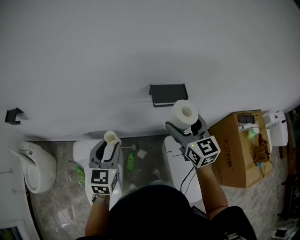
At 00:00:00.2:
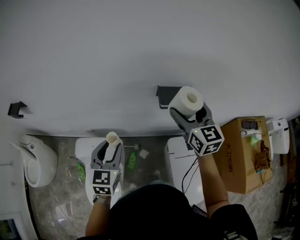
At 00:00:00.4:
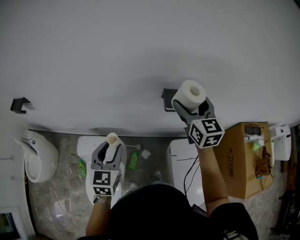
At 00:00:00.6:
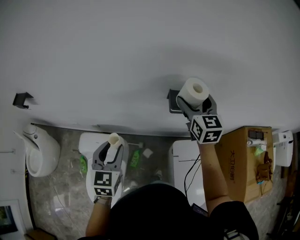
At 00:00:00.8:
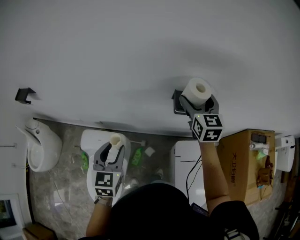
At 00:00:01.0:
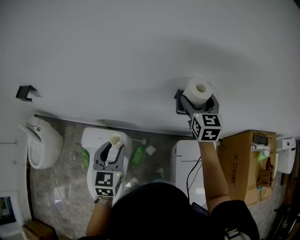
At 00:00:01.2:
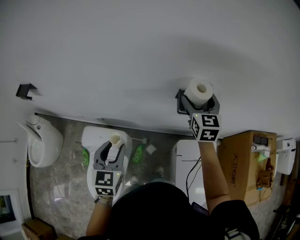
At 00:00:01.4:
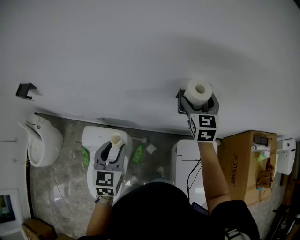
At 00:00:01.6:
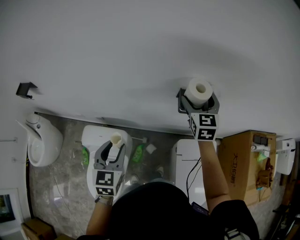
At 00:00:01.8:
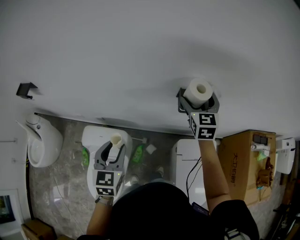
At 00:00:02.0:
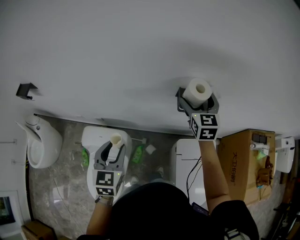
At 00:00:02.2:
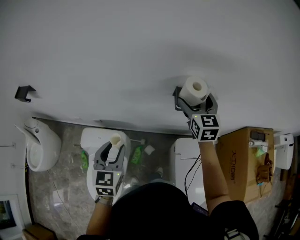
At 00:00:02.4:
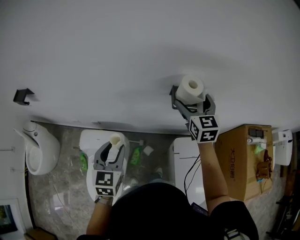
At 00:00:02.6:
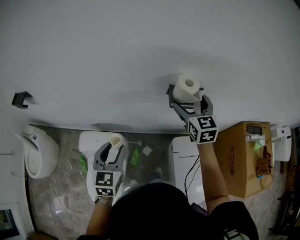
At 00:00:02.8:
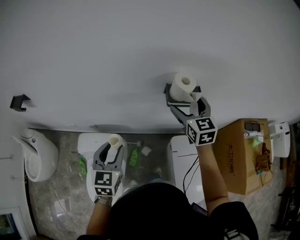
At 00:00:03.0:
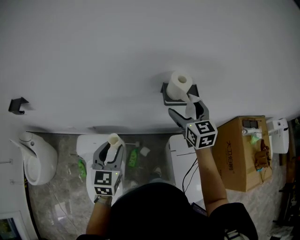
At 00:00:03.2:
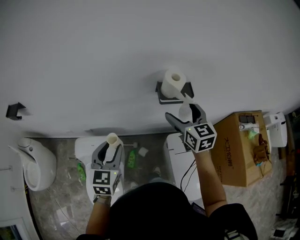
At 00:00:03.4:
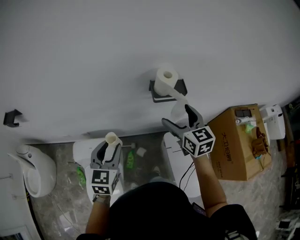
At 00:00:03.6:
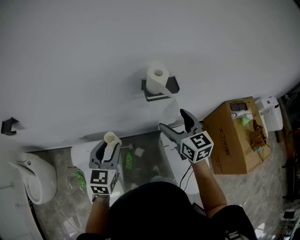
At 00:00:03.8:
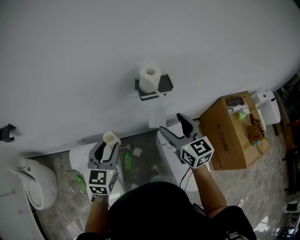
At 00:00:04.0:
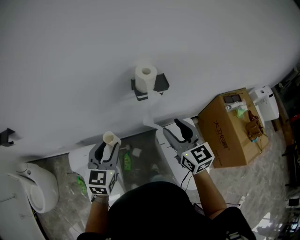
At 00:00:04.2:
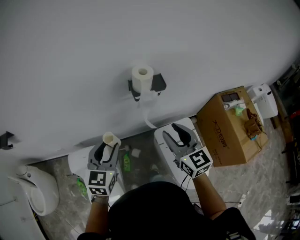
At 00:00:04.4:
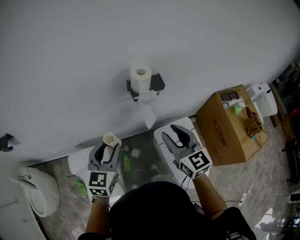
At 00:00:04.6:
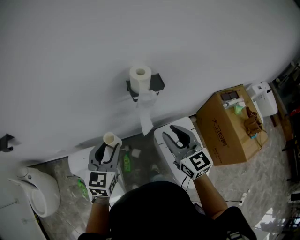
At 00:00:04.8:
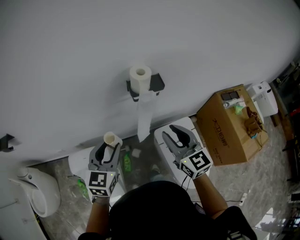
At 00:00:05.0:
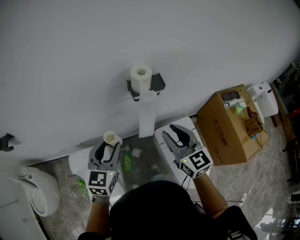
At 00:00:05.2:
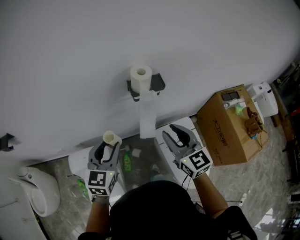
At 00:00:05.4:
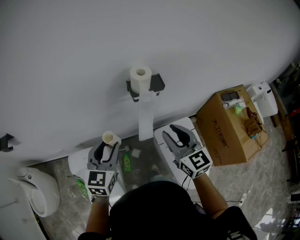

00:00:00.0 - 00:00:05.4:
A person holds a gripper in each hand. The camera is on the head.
00:00:00.0 - 00:00:01.4: The right gripper goes approximately 15 cm forward, while the left gripper changes place by approximately 5 cm.
00:00:01.4 - 00:00:02.8: The right gripper is displaced backward by some 10 cm.
00:00:02.8 - 00:00:04.0: The left gripper moves to the right, some 5 cm. The right gripper travels backward by roughly 15 cm, and closes.
00:00:04.0 - 00:00:05.4: The grippers stay close to where they were, moving slightly.

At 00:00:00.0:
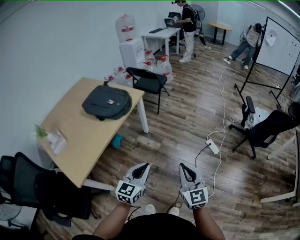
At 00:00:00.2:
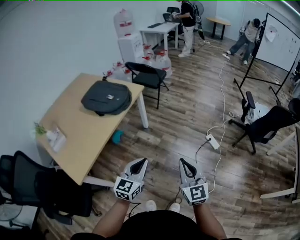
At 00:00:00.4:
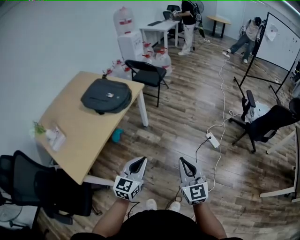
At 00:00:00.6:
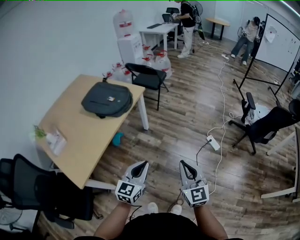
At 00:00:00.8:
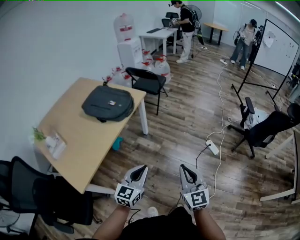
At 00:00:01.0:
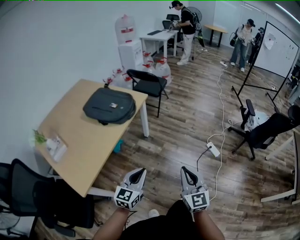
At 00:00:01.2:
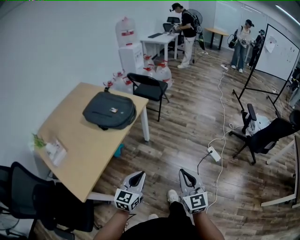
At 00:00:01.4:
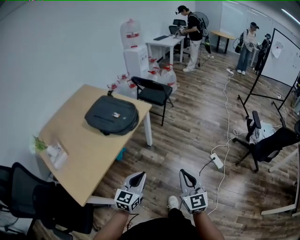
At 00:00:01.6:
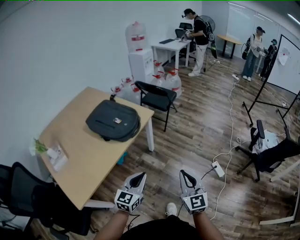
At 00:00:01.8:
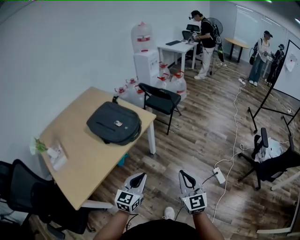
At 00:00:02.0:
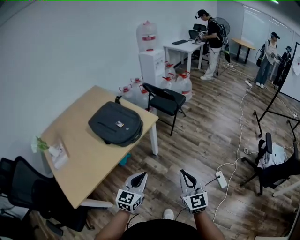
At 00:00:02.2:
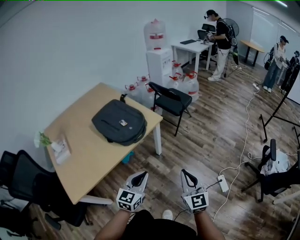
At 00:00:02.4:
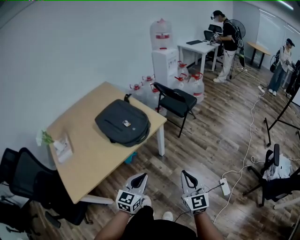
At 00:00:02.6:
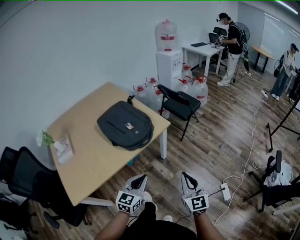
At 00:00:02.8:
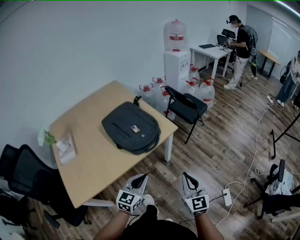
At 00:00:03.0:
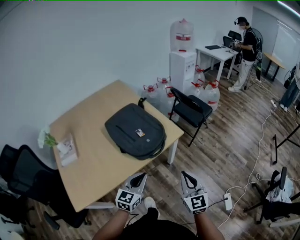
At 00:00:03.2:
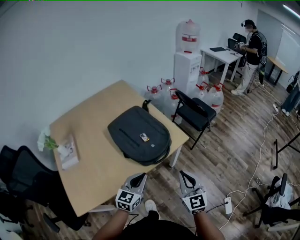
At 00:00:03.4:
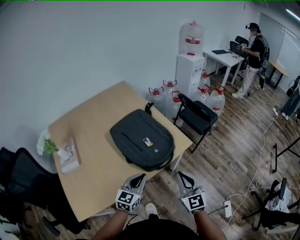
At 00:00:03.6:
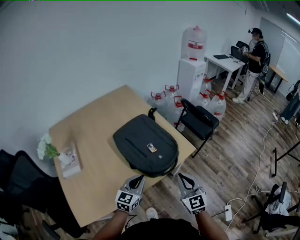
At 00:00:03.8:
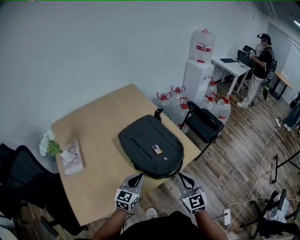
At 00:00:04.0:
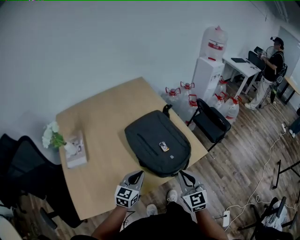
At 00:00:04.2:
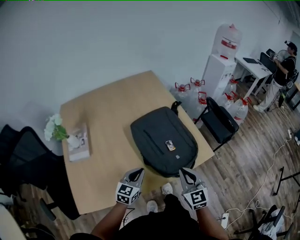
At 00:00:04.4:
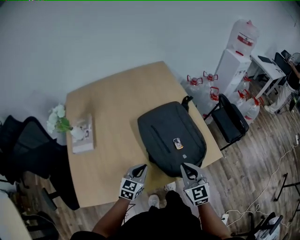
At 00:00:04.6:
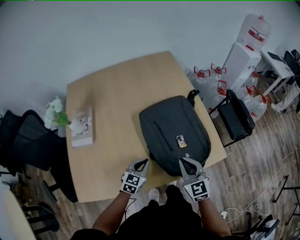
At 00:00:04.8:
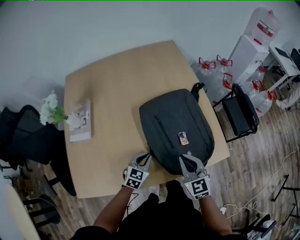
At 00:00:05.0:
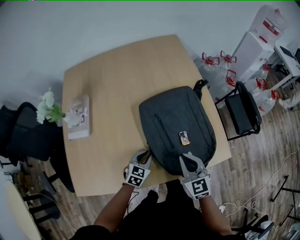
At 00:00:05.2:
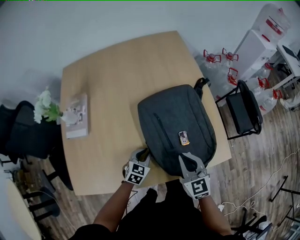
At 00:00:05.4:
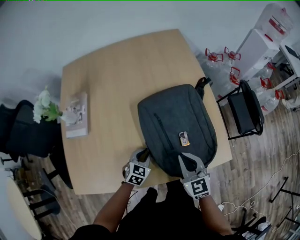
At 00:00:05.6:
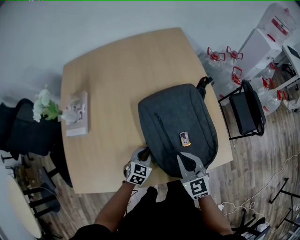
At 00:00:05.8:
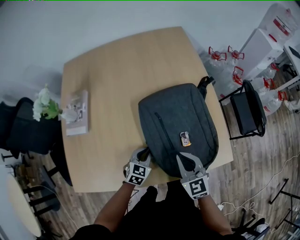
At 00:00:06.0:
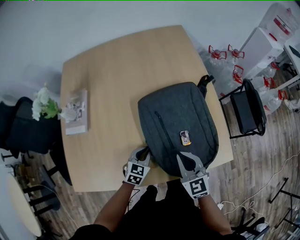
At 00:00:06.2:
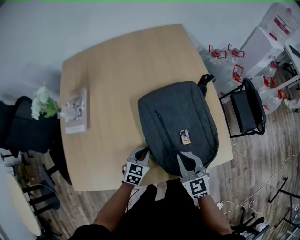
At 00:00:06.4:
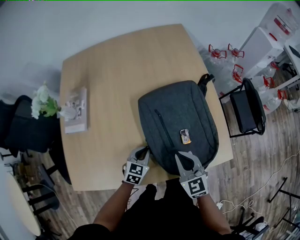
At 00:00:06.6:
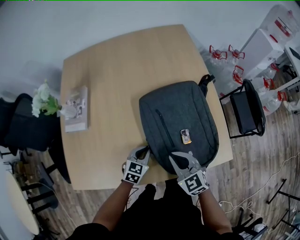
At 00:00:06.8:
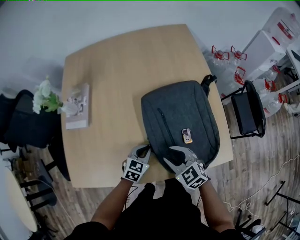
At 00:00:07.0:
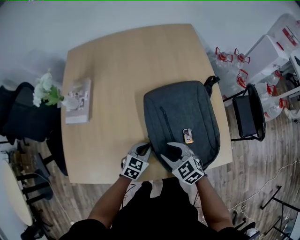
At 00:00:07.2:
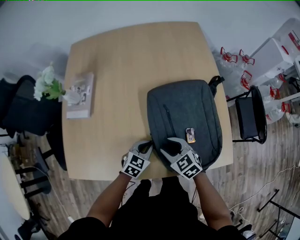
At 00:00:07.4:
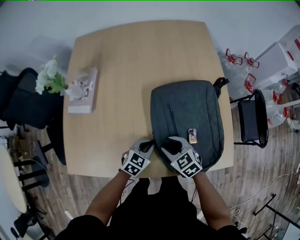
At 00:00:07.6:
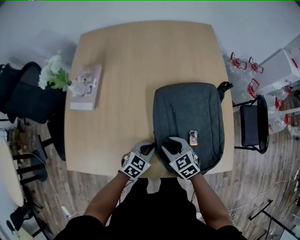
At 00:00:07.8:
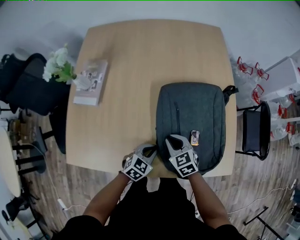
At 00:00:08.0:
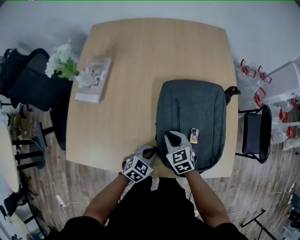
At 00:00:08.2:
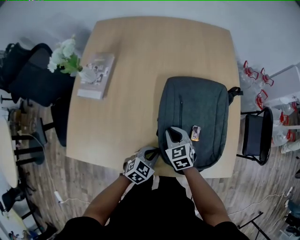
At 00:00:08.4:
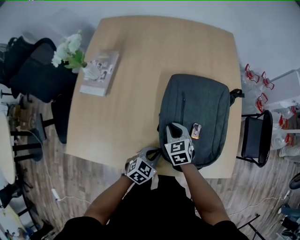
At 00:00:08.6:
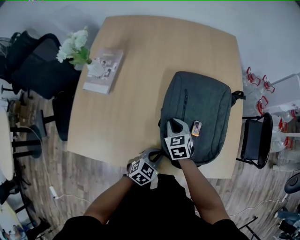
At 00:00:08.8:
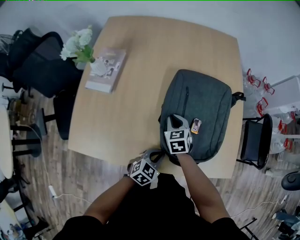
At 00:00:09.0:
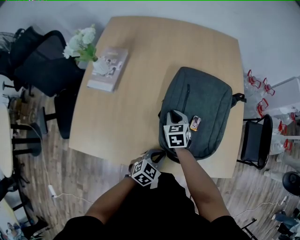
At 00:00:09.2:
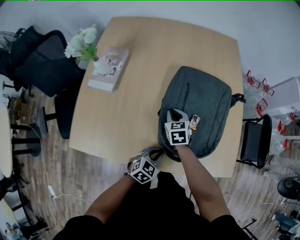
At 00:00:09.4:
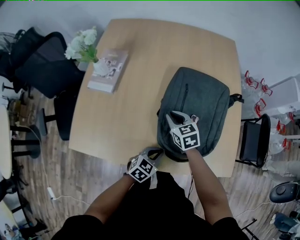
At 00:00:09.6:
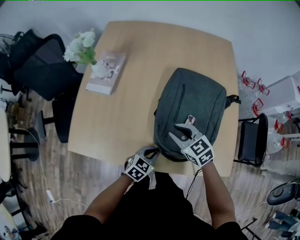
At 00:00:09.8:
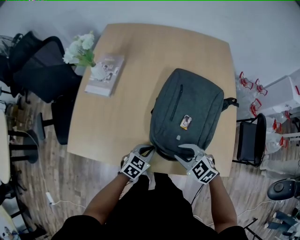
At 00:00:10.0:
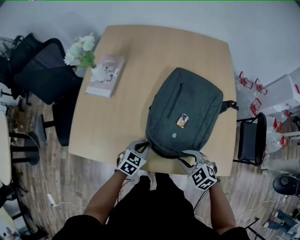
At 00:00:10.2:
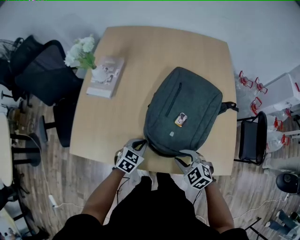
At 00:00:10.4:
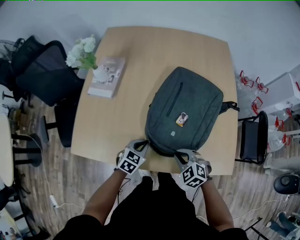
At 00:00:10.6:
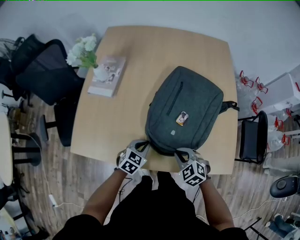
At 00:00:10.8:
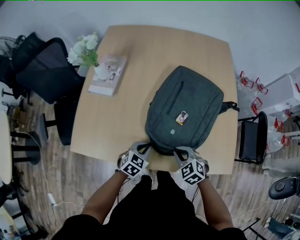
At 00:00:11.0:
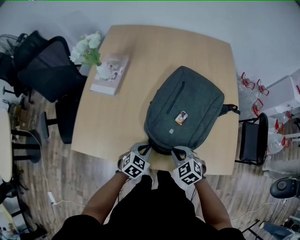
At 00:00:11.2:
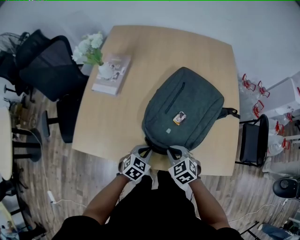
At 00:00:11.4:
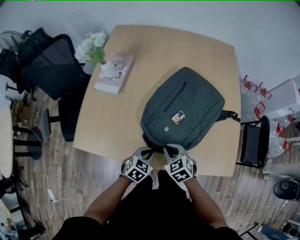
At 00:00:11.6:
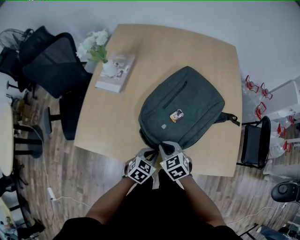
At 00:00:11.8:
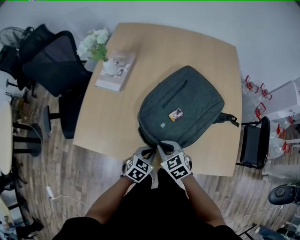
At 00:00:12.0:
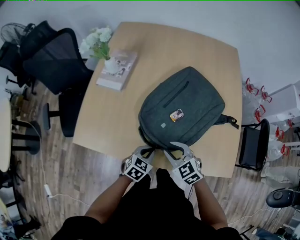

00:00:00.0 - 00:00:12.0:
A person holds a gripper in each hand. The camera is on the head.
00:00:00.0 - 00:00:01.6: The left gripper heads forward and to the left, covering about 15 cm; the right gripper shifts roughly 15 cm forward.
00:00:01.6 - 00:00:03.0: The right gripper moves forward, about 25 cm, while the left gripper moves forward and to the left, roughly 20 cm.
00:00:03.0 - 00:00:04.4: The right gripper shifts about 30 cm forward and to the left, and turns by some 30 degrees. Meanwhile the left gripper travels to the left, forward and downward by roughly 25 cm, and turns by about 20 degrees.
00:00:04.4 - 00:00:06.0: The right gripper heads forward and downward, covering about 10 cm; the left gripper shifts approximately 10 cm downward and forward.
00:00:06.0 - 00:00:07.6: The right gripper heads downward and to the left, covering about 10 cm, swivels some 30 degrees, and opens its fingers.
00:00:07.6 - 00:00:09.0: The left gripper heads backward, covering approximately 5 cm, while the right gripper is displaced forward and to the left by some 15 cm, and closes.
00:00:09.0 - 00:00:10.4: The left gripper moves to the left and forward, some 10 cm. The right gripper moves backward, approximately 20 cm, and turns by approximately 40 degrees.
00:00:10.4 - 00:00:12.0: The left gripper travels backward by approximately 5 cm, while the right gripper travels to the left by roughly 5 cm.

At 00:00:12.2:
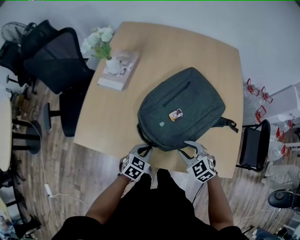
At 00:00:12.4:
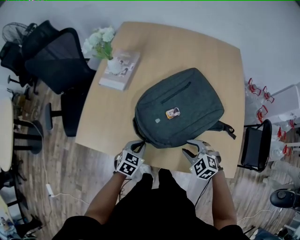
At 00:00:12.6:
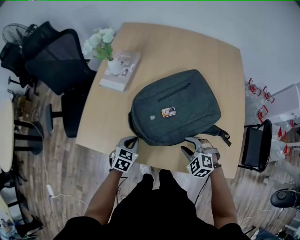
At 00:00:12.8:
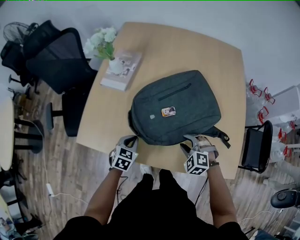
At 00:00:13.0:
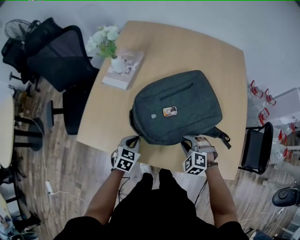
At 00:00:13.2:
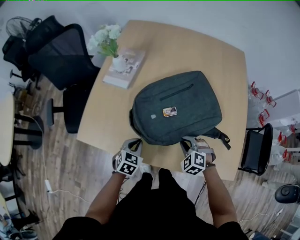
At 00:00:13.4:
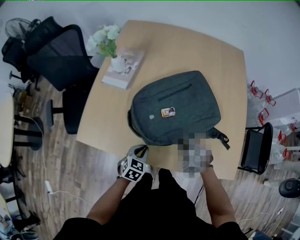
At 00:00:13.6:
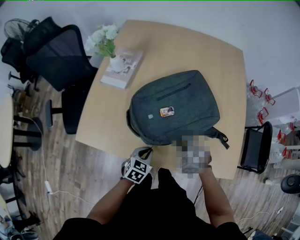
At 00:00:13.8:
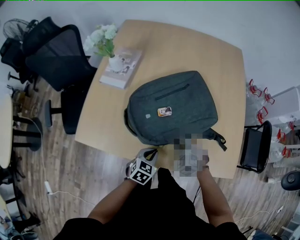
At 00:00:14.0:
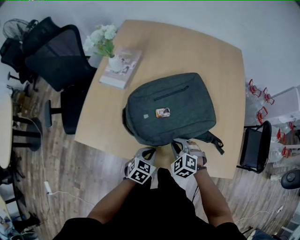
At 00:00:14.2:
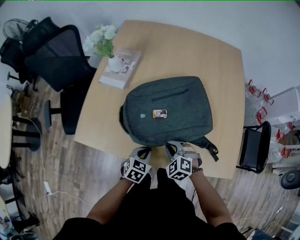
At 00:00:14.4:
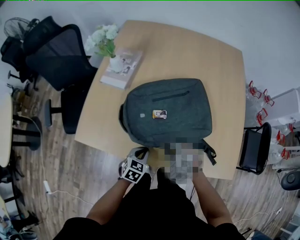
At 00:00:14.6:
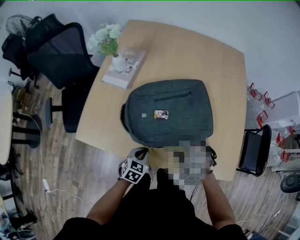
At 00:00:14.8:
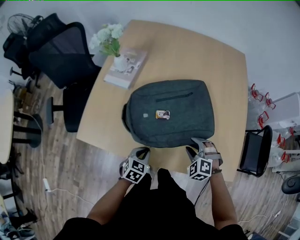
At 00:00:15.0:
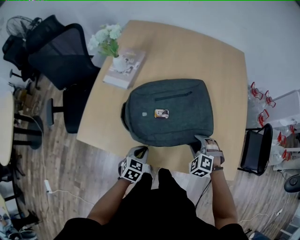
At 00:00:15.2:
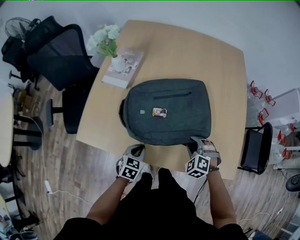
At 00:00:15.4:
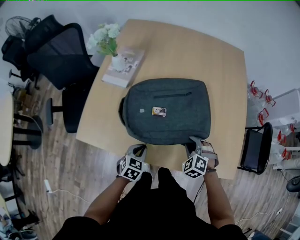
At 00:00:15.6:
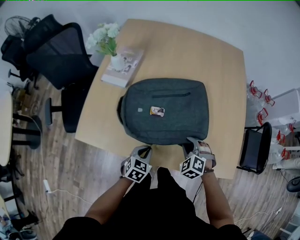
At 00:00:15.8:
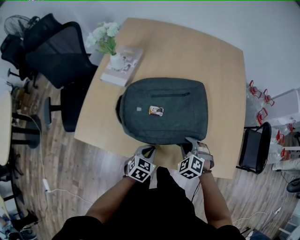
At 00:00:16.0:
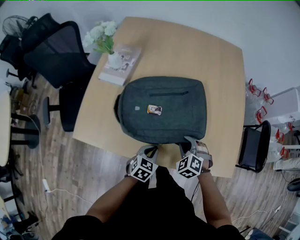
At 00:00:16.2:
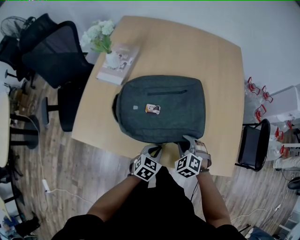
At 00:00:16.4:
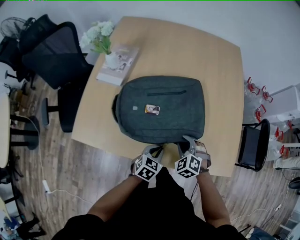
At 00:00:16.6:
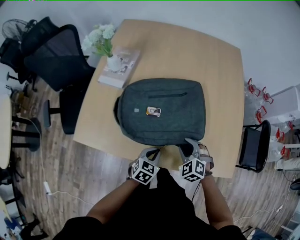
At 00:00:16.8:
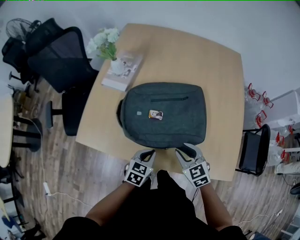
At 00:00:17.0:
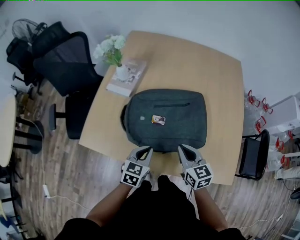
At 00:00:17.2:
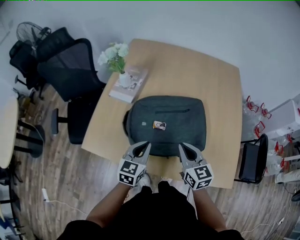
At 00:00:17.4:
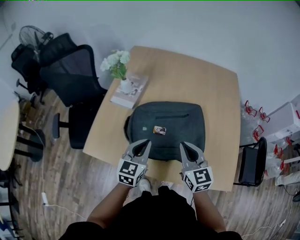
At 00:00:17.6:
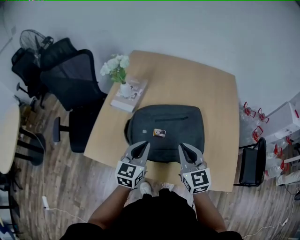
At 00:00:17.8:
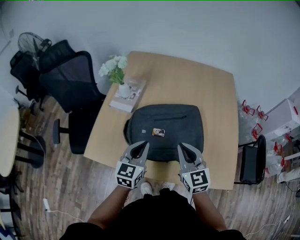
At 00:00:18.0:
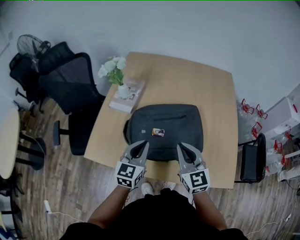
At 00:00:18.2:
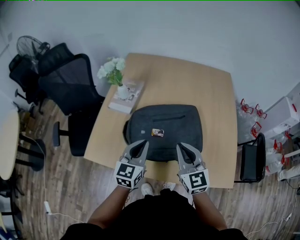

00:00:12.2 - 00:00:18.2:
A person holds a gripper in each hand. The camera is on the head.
00:00:12.2 - 00:00:13.8: The right gripper shifts by about 5 cm, and closes up, while the left gripper reaches approximately 10 cm to the left, then returns.
00:00:13.8 - 00:00:15.2: The left gripper travels to the left by some 10 cm, while the right gripper is displaced to the right by some 5 cm, and opens its fingers.
00:00:15.2 - 00:00:16.6: The left gripper shifts approximately 10 cm to the right.
00:00:16.6 - 00:00:18.2: The left gripper goes about 25 cm upward and to the left, and tilts its fingers some 30 degrees upward, while the right gripper is displaced upward by approximately 20 cm, tilts its fingers roughly 40 degrees upward, and closes.
